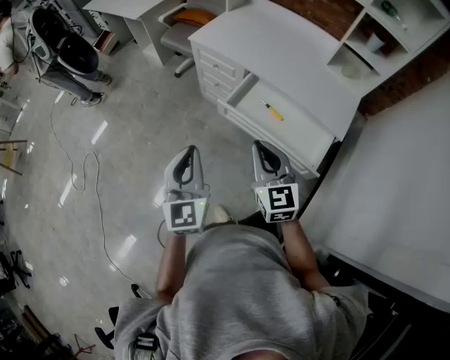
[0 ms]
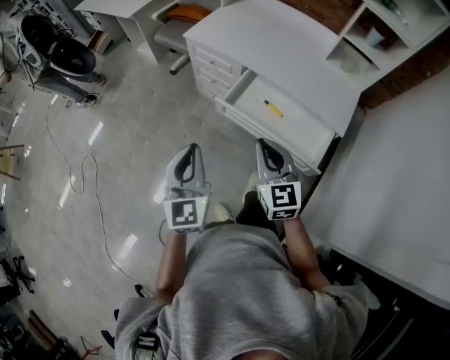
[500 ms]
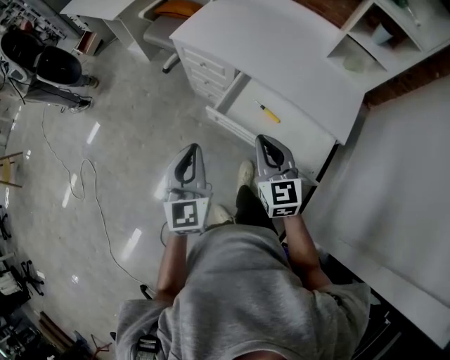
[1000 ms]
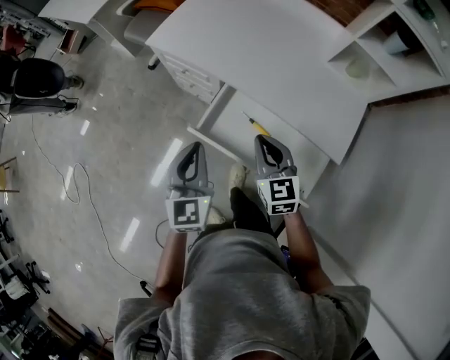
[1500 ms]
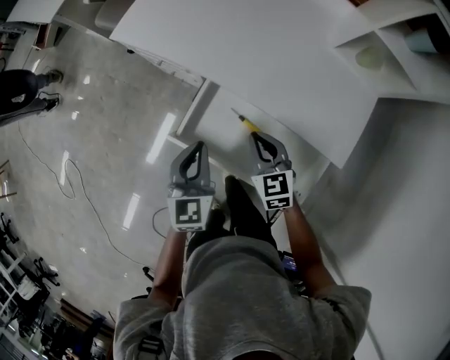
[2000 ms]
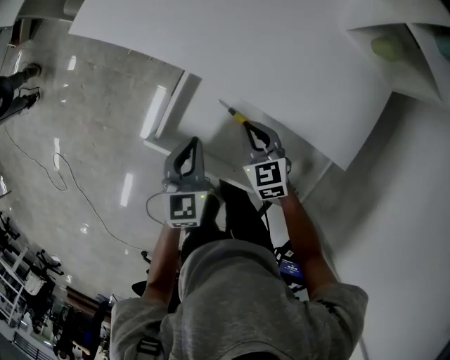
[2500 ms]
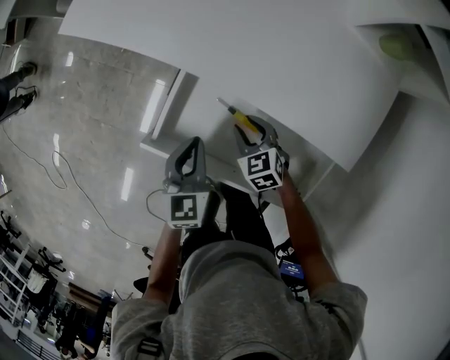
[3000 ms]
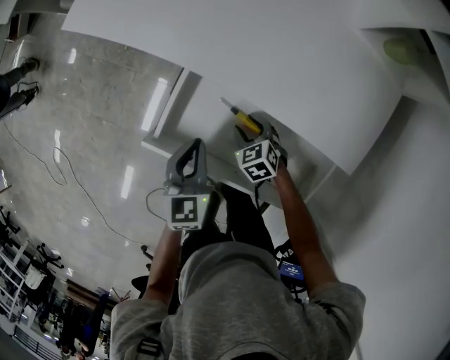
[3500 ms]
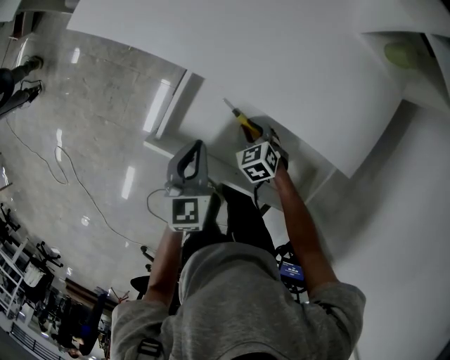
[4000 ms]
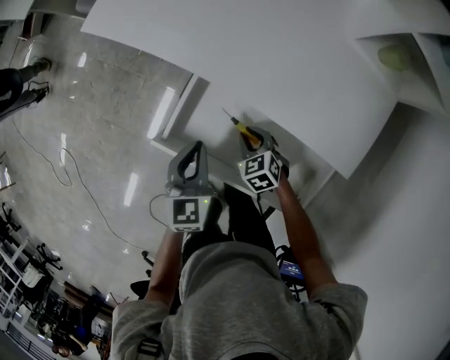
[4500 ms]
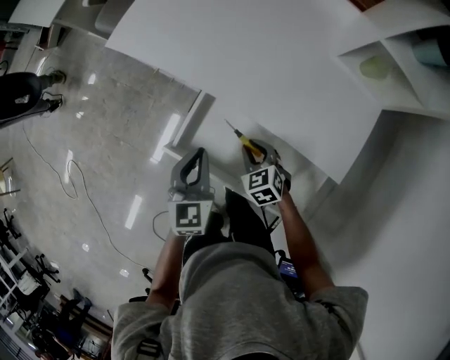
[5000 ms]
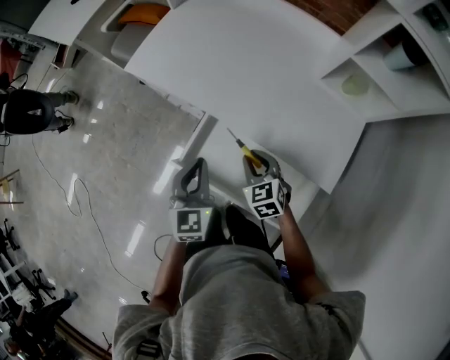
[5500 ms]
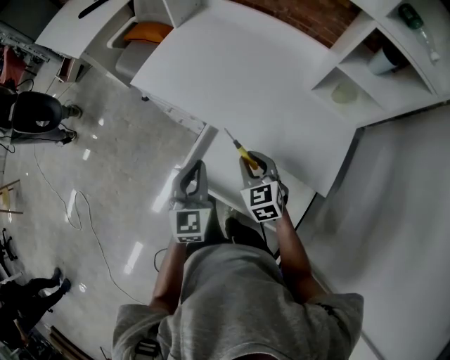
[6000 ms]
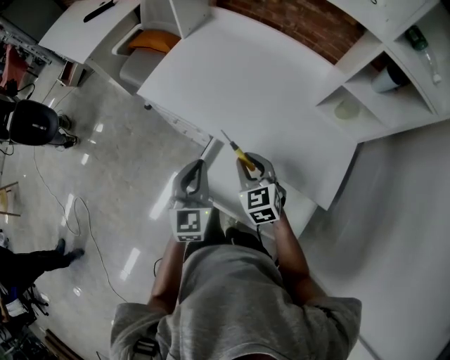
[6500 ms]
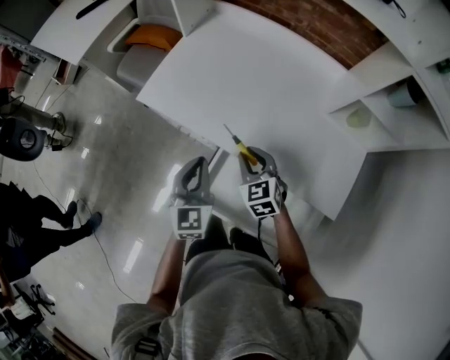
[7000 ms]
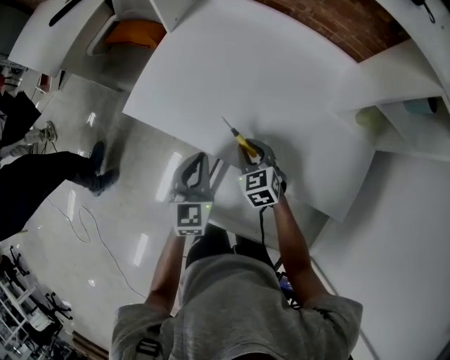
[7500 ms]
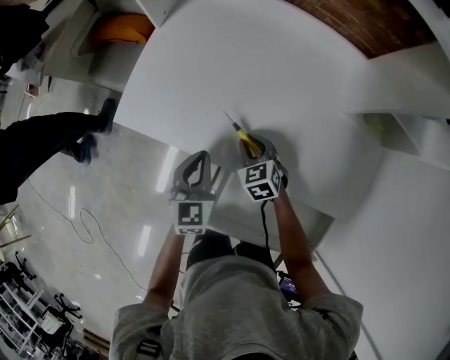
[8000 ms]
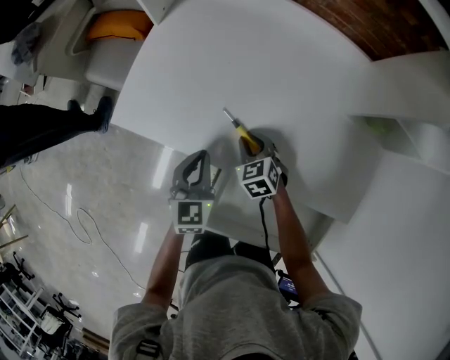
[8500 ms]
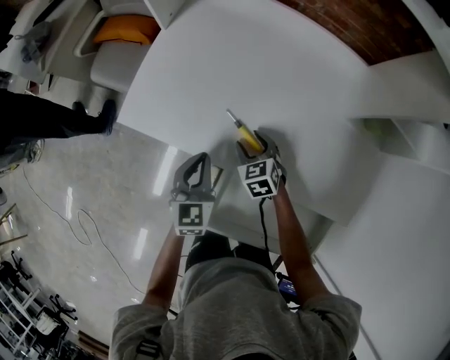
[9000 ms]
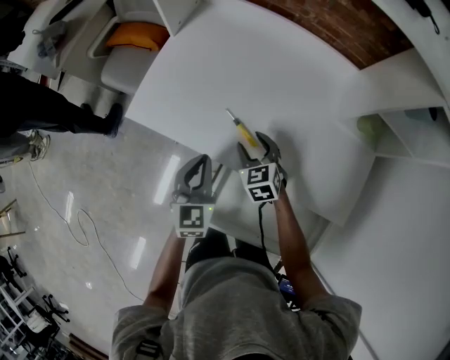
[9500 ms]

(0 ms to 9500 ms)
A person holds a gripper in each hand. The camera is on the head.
0 ms - 2000 ms: The right gripper shifts approximately 40 cm forward, downward and to the right, and swivels about 20 degrees. Meanwhile the left gripper goes approximately 40 cm forward, to the right and downward, and changes its angle by approximately 30 degrees.
2000 ms - 4000 ms: The right gripper moves downward, about 25 cm, swivels roughly 30 degrees, and opens and closes again; the left gripper goes some 15 cm downward.
4000 ms - 5500 ms: Both grippers move upward, some 25 cm. The right gripper turns by about 20 degrees.
5500 ms - 7500 ms: Both grippers move forward, some 20 cm.
7500 ms - 9500 ms: The right gripper goes downward and returns, approximately 10 cm each way, and opens up.

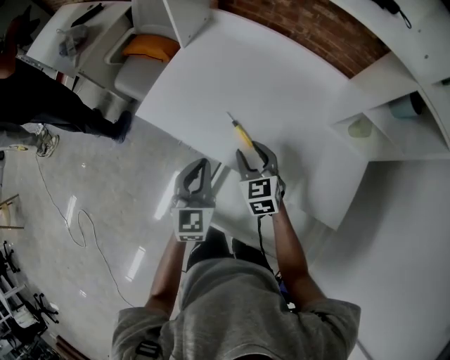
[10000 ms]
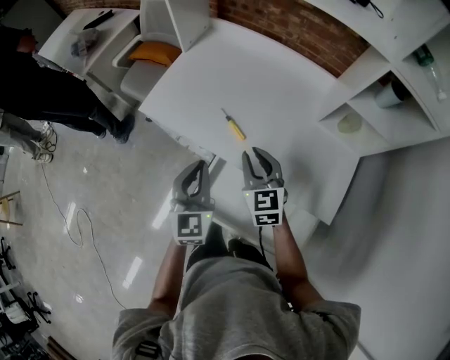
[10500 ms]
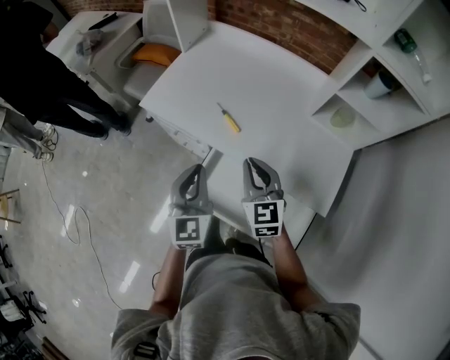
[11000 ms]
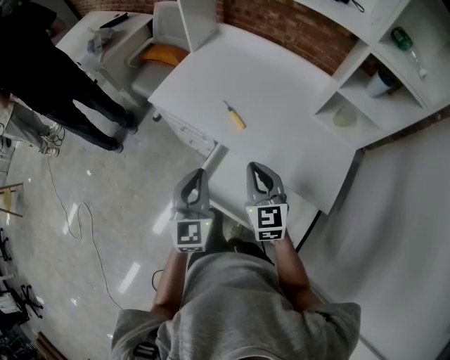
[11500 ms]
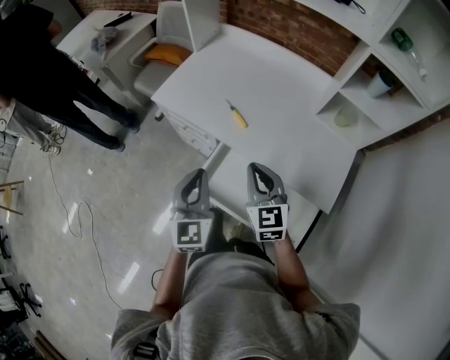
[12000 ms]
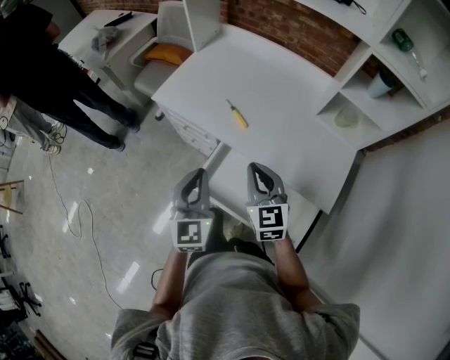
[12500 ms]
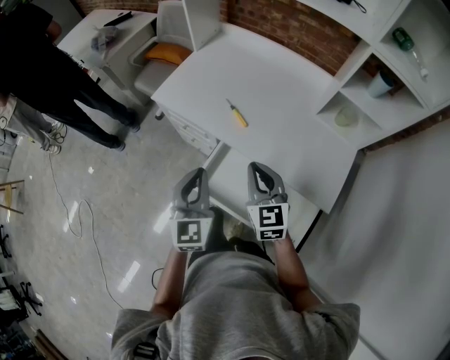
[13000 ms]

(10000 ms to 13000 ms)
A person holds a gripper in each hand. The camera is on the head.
10000 ms - 11500 ms: The grippers both shift backward and upward by roughly 20 cm. The right gripper closes its fingers.
11500 ms - 13000 ms: The grippers stay close to where they were, moving slightly.

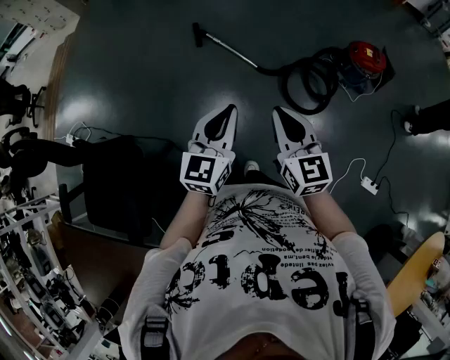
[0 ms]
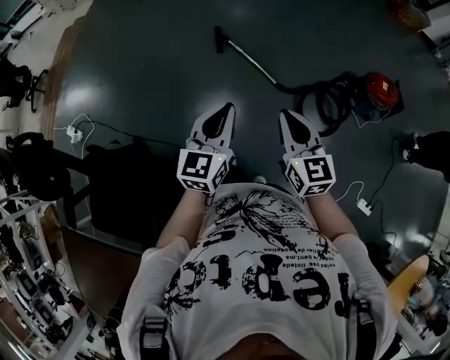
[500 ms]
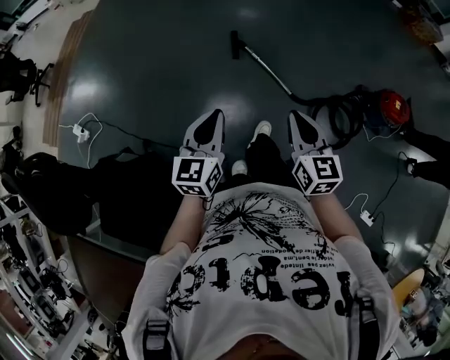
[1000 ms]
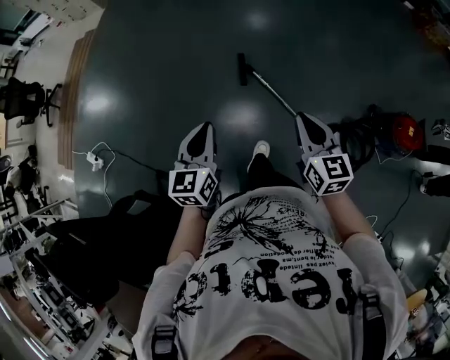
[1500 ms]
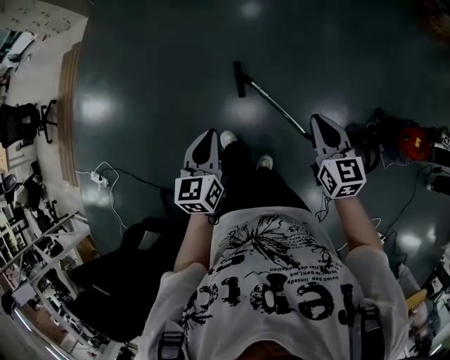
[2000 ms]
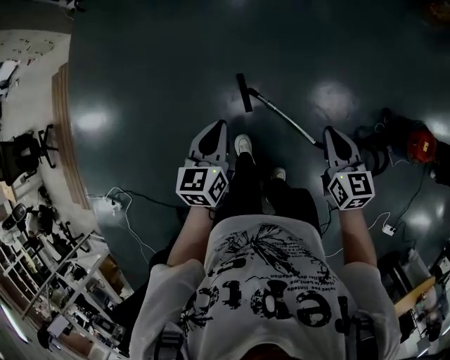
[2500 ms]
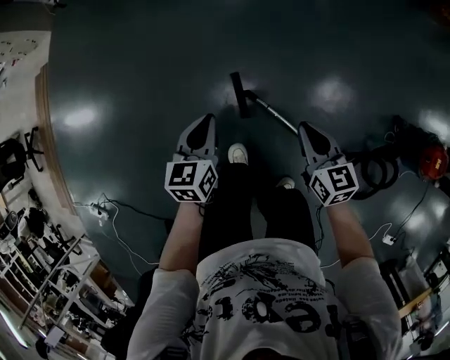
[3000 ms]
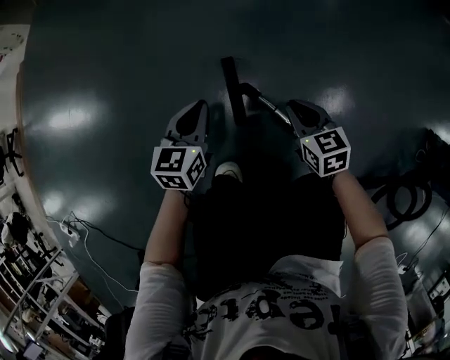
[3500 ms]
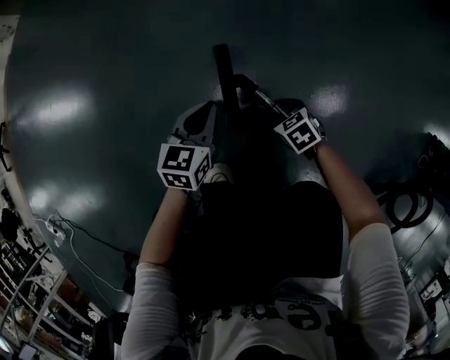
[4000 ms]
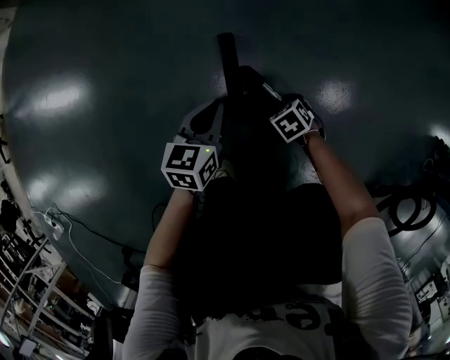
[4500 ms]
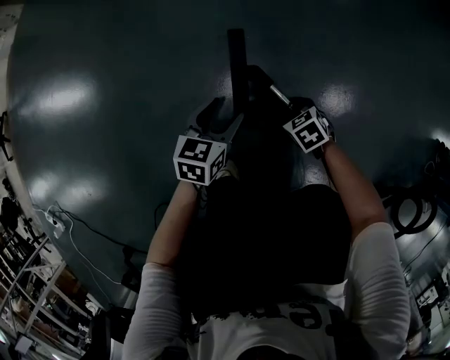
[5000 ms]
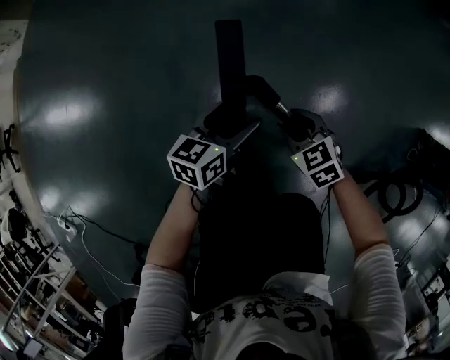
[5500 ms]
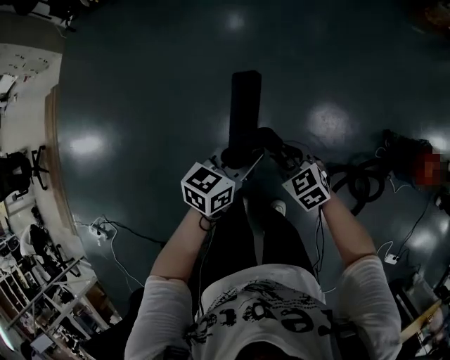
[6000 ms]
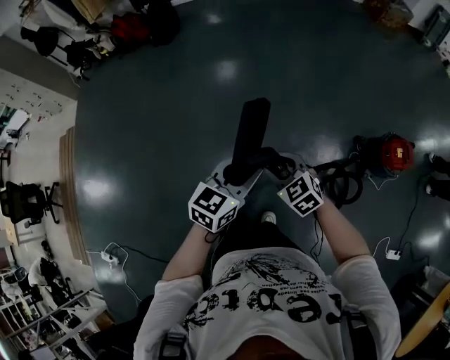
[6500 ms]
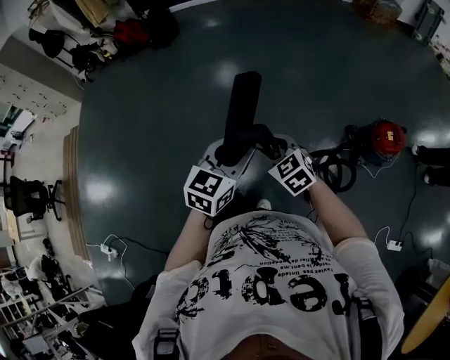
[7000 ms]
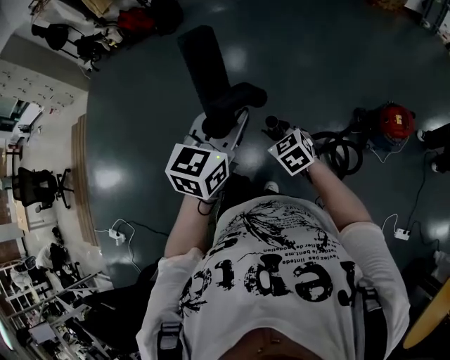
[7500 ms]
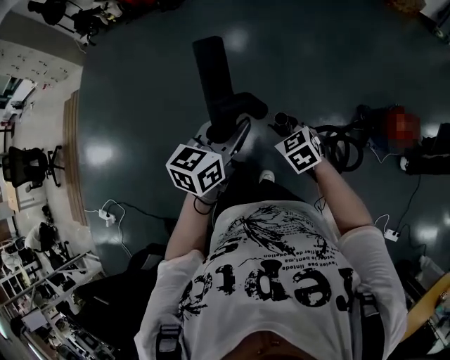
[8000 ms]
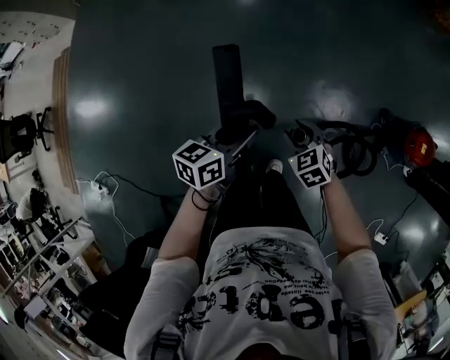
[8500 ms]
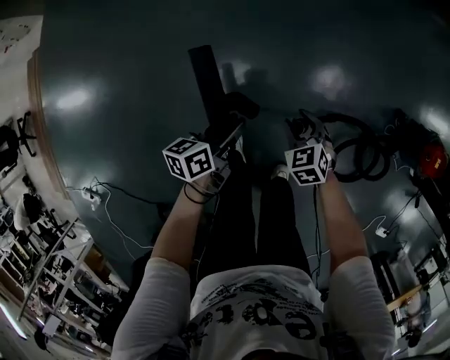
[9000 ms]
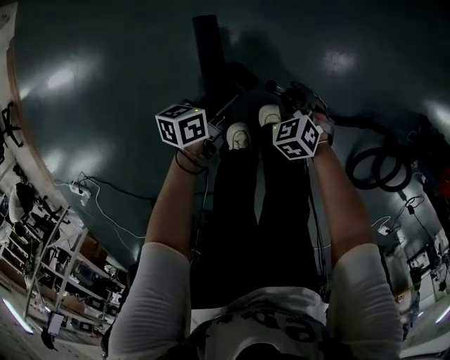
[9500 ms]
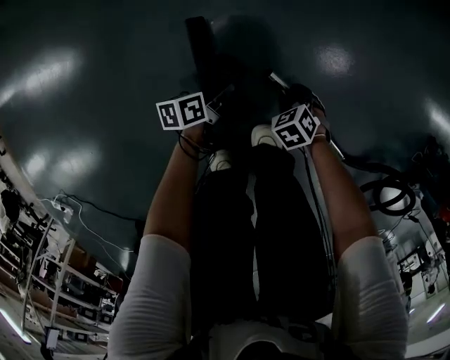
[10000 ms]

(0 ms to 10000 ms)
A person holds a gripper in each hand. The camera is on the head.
0 ms - 2000 ms: The two grippers travel together, forward, some 70 cm. The left gripper changes its angle by approximately 20 degrees.
2000 ms - 4000 ms: Both grippers travel together downward, some 80 cm. The right gripper tips its fingers downward by some 40 degrees, and opens.
4000 ms - 6000 ms: The grippers both shift upward by approximately 60 cm. The left gripper swivels roughly 30 degrees, and opens and closes again.
6000 ms - 8000 ms: The left gripper heads upward and backward, covering roughly 35 cm, while the right gripper is displaced upward, backward and to the right by roughly 30 cm.
8000 ms - 10000 ms: The grippers both shift downward by about 90 cm. The left gripper rotates around the line of its fingers by roughly 50 degrees, counterclockwise from behind. The right gripper tilts its fingers roughly 30 degrees downward.

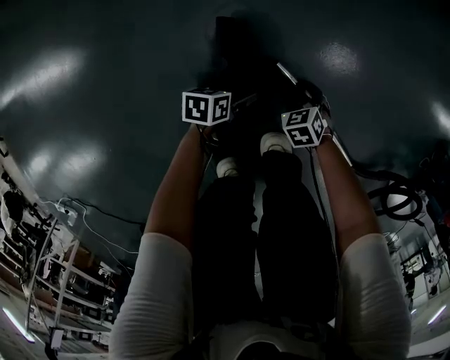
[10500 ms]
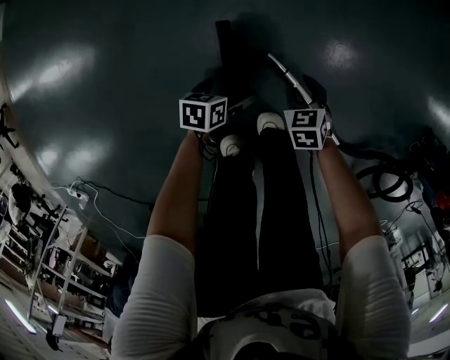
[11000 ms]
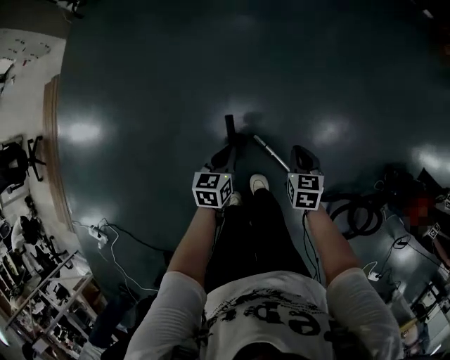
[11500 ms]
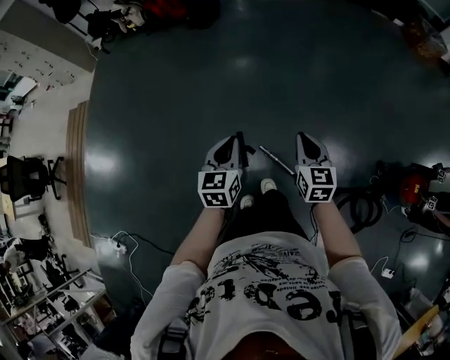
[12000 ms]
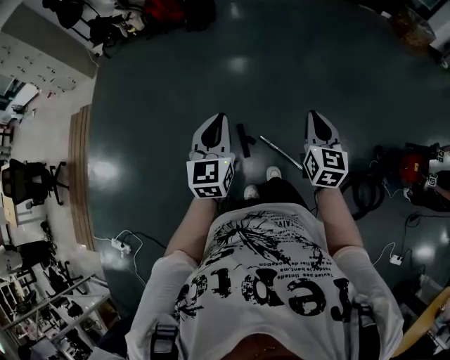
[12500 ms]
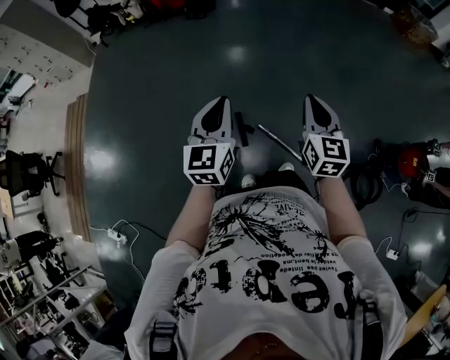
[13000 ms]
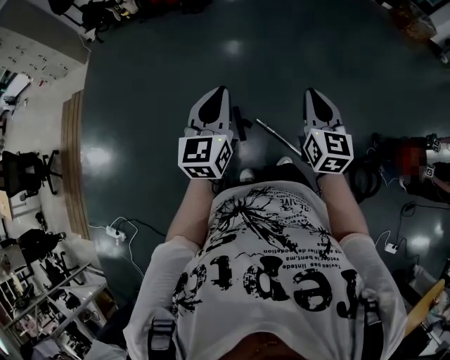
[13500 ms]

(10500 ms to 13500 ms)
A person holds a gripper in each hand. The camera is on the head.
10500 ms - 12000 ms: The grippers both shift upward by roughly 90 cm. The right gripper tilts its fingers roughly 50 degrees upward, and closes; the left gripper turns by about 50 degrees, and closes up.
12000 ms - 13500 ms: Both grippers travel together upward and backward, some 15 cm.
